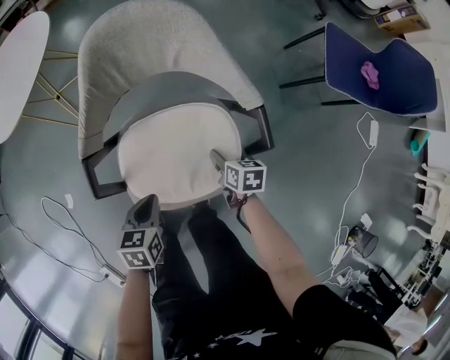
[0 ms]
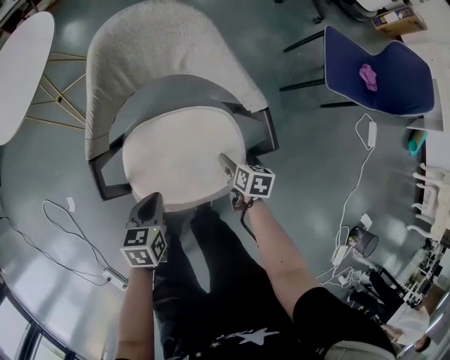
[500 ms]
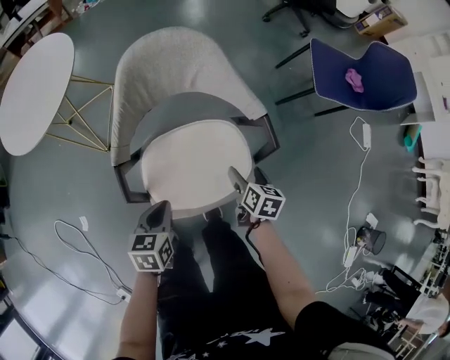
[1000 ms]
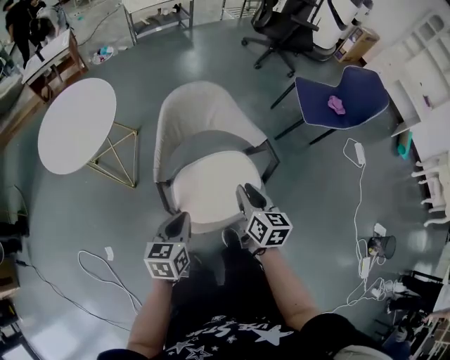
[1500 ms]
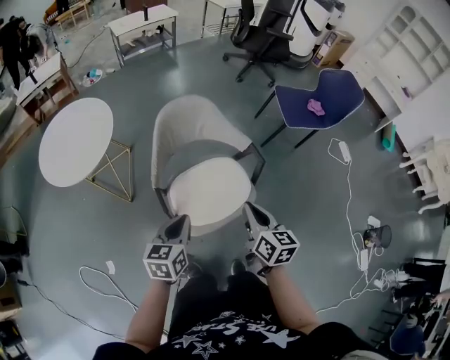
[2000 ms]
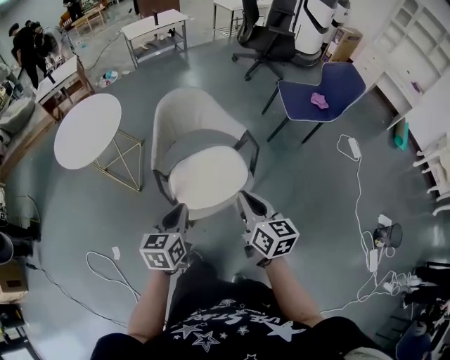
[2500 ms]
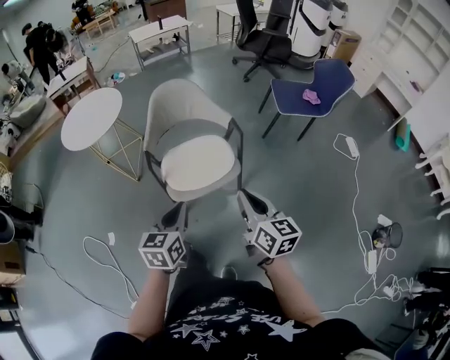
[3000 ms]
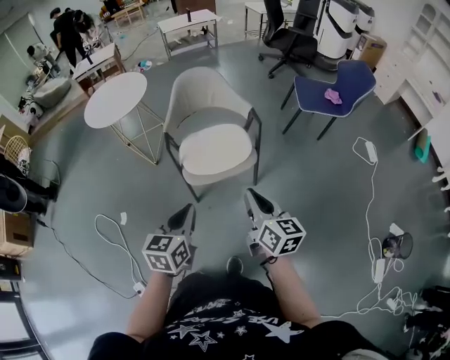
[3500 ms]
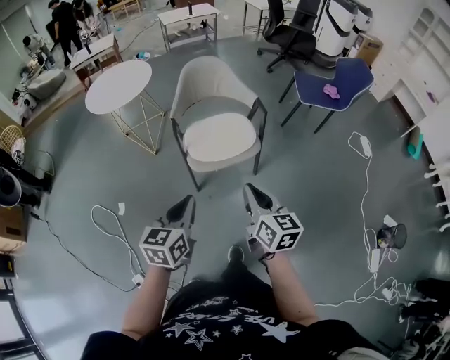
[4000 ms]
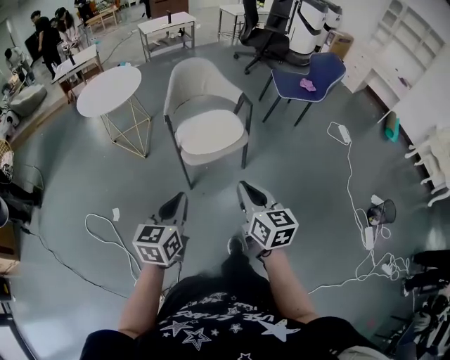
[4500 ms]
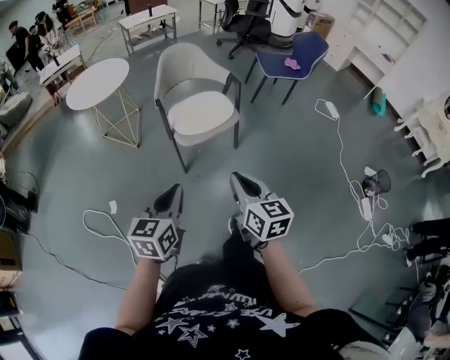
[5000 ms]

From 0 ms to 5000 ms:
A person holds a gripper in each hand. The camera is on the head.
From 0 ms to 2500 ms: The right gripper heads upward and backward, covering roughly 50 cm, tips its fingers upward by approximately 40 degrees, and closes its fingers. Meanwhile the left gripper travels upward by some 30 cm, and changes its angle by some 30 degrees.
From 2500 ms to 5000 ms: Both grippers travel together backward, about 35 cm.

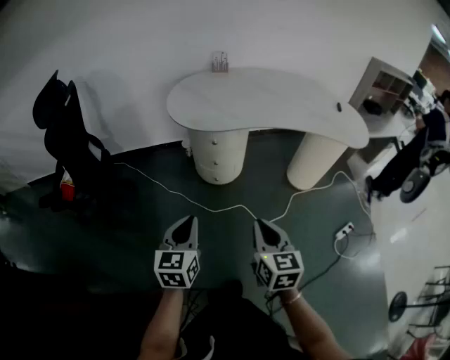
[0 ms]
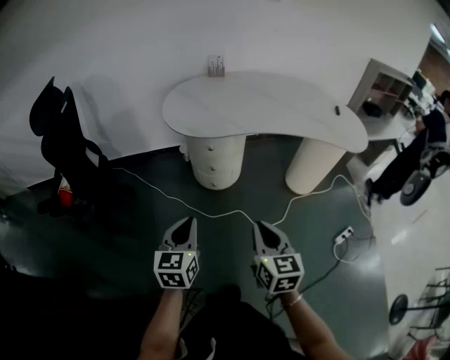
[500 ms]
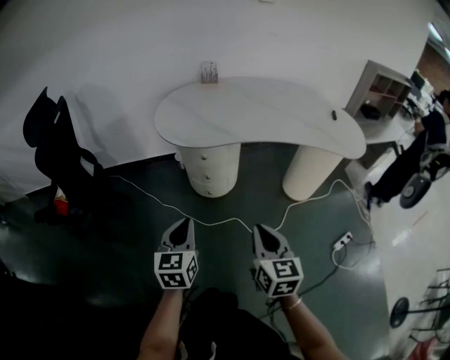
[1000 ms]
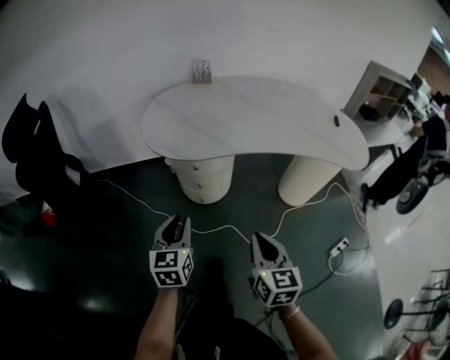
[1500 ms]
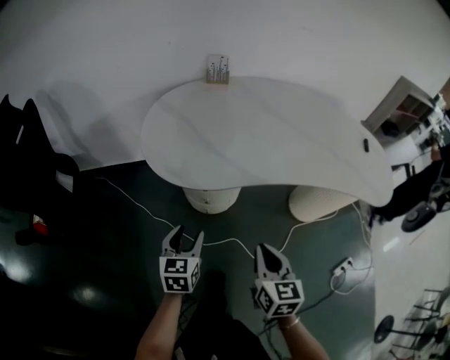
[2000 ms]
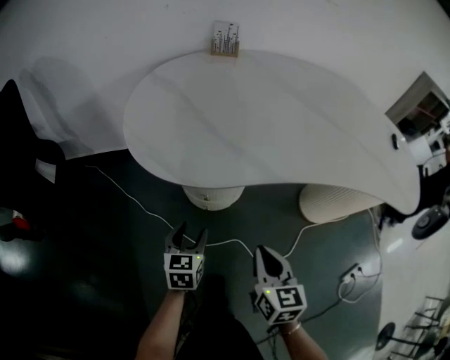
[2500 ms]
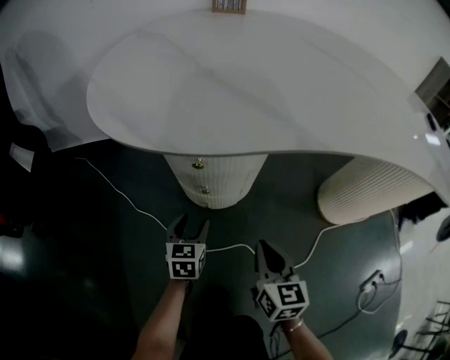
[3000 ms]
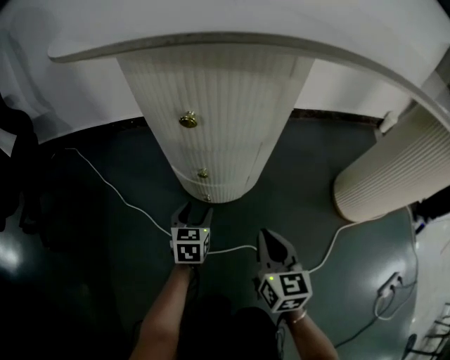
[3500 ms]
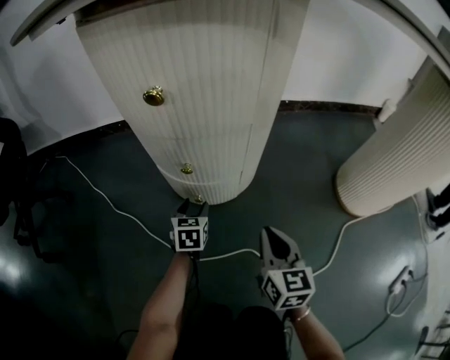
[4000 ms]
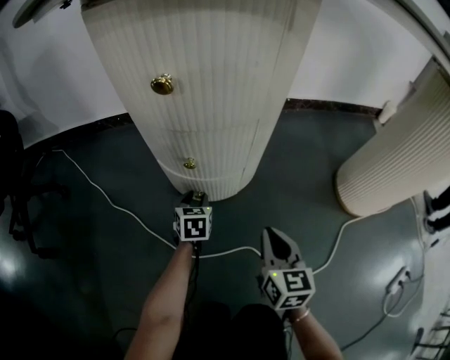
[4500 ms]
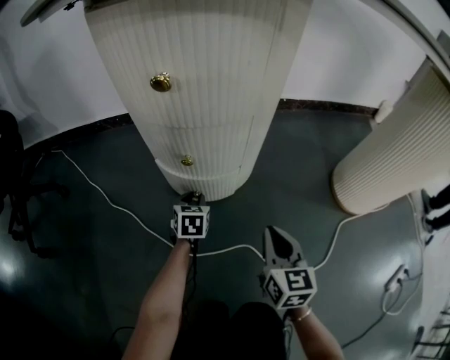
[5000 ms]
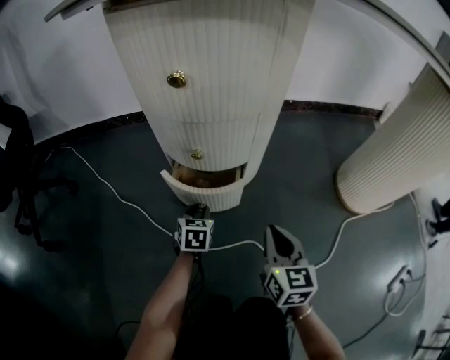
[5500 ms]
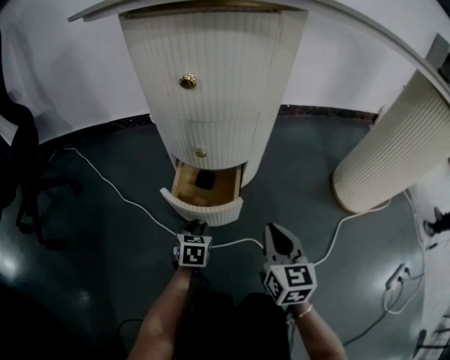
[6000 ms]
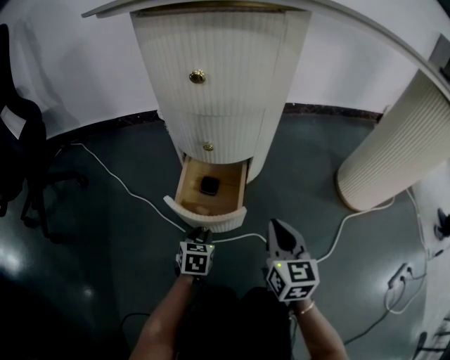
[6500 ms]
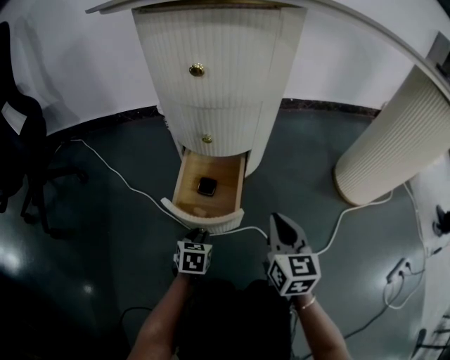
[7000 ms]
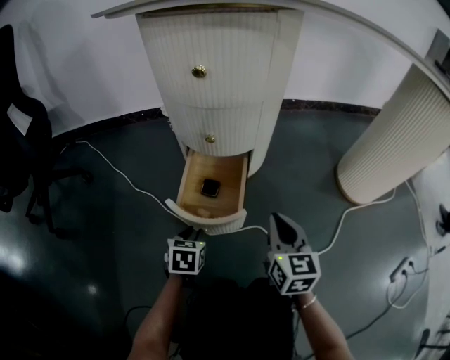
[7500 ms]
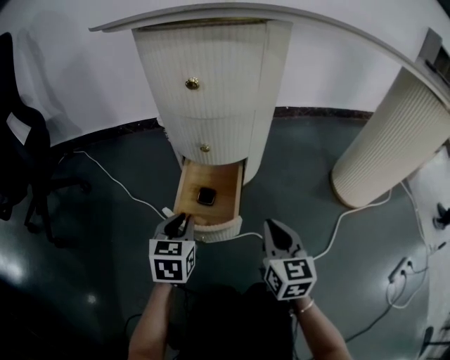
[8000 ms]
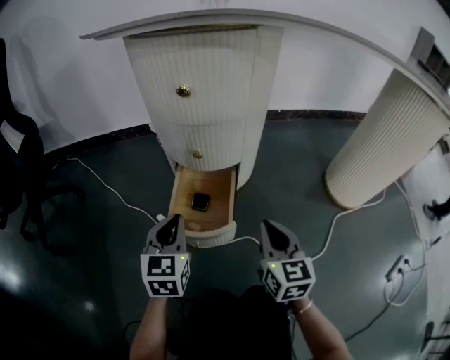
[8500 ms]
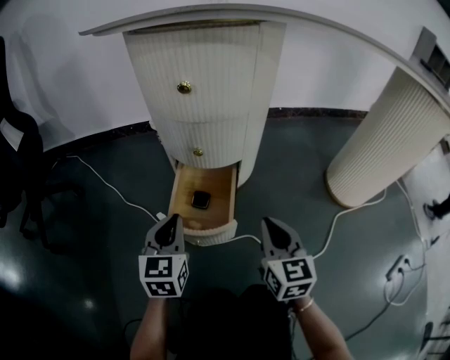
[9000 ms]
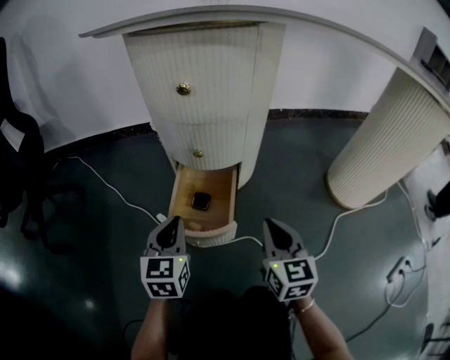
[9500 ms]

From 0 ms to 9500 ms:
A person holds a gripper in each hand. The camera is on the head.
From 0 ms to 2000 ms: The left gripper is displaced forward and downward by roughly 30 cm, and opens. Meanwhile the right gripper moves forward, roughly 25 cm.
From 2000 ms to 4000 ms: The grippers both shift downward by some 50 cm.
From 4000 ms to 5500 ms: The left gripper travels backward by about 5 cm, and closes up.
From 5500 ms to 7500 ms: The right gripper moves approximately 5 cm. Meanwhile the left gripper shifts some 15 cm backward.
From 7500 ms to 9500 ms: The left gripper heads upward, covering some 15 cm, angles its fingers upward, by about 30 degrees, and closes.

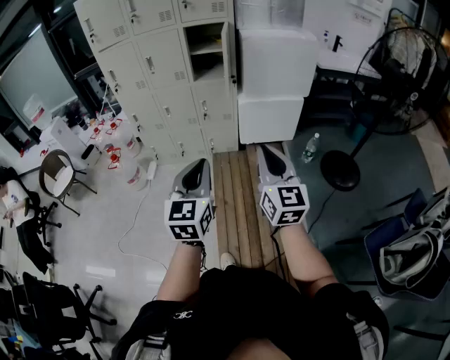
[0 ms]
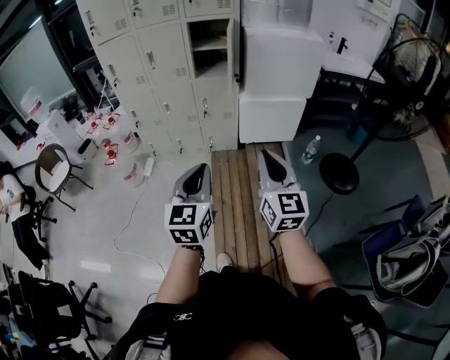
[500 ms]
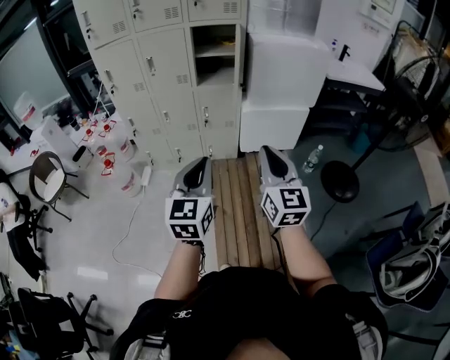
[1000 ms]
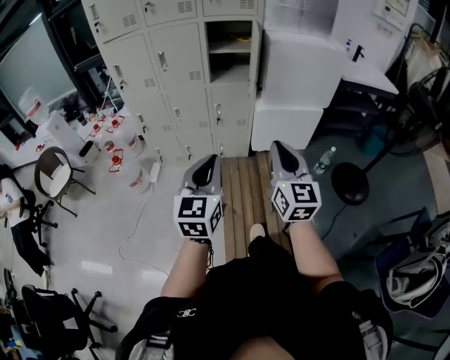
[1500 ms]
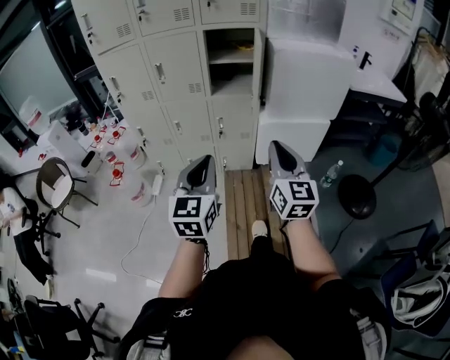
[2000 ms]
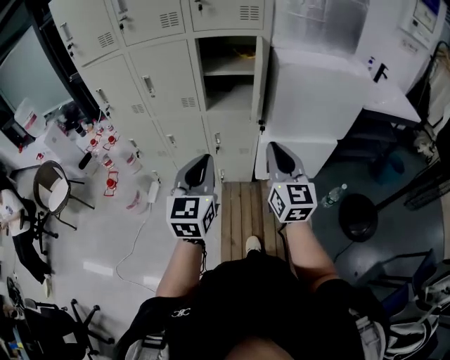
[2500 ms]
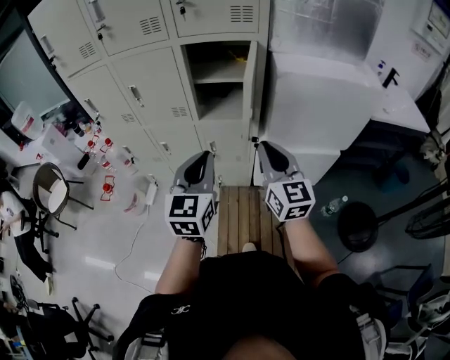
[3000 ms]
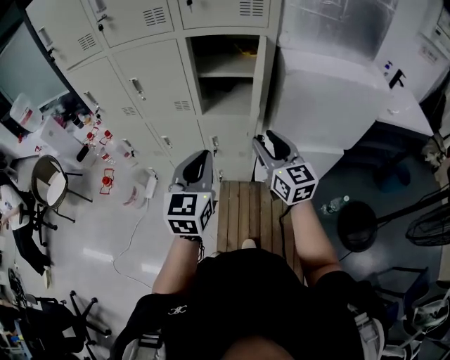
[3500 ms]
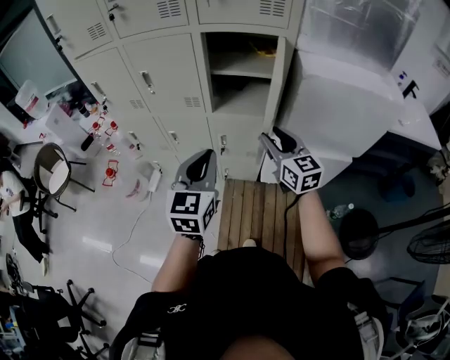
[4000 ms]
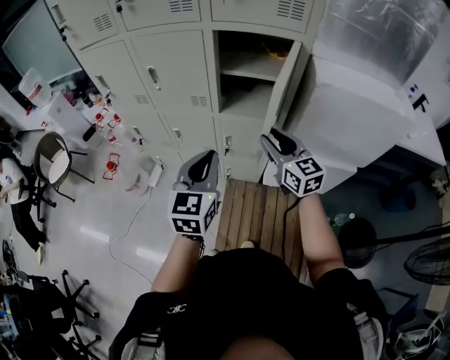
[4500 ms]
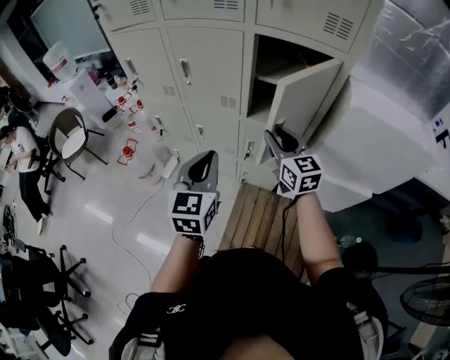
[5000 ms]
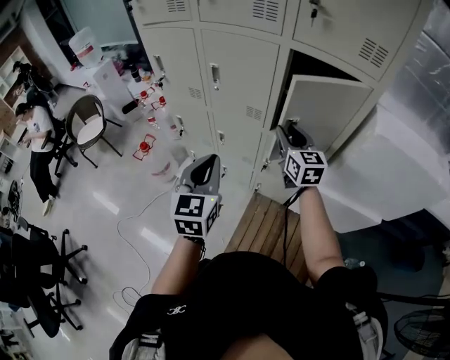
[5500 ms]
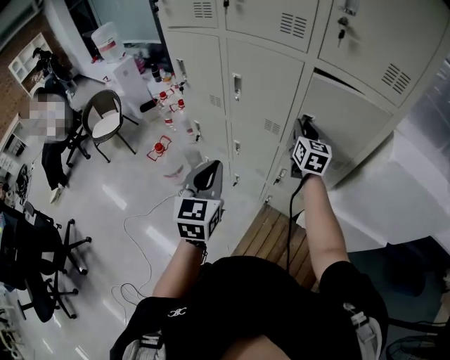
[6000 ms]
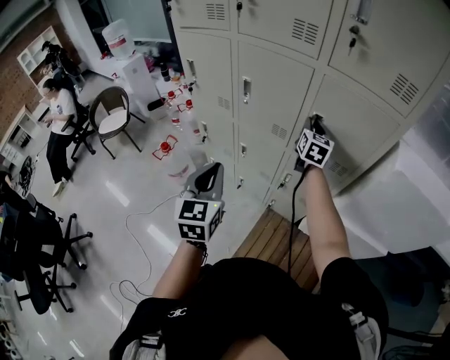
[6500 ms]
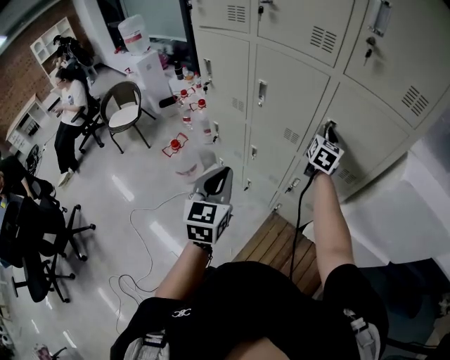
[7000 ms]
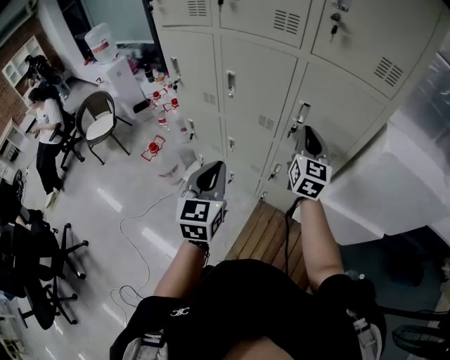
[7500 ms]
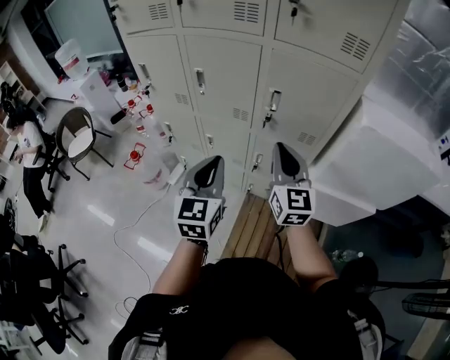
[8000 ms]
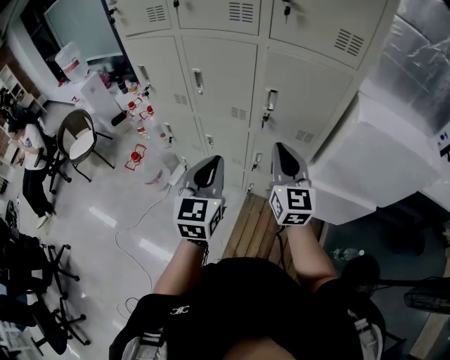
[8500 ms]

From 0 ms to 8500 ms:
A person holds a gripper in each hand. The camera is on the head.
From 0 ms to 2000 ms: The right gripper is displaced forward by about 25 cm; the left gripper moves forward and to the left, about 25 cm.
From 2000 ms to 4000 ms: Both grippers move forward, some 30 cm. The right gripper turns by roughly 30 degrees, and opens.
From 4000 ms to 6500 ms: The right gripper travels forward by roughly 30 cm; the left gripper goes some 20 cm to the left and forward, and swivels roughly 30 degrees.
From 6500 ms to 8500 ms: The left gripper is displaced to the right by roughly 10 cm; the right gripper shifts about 25 cm backward.

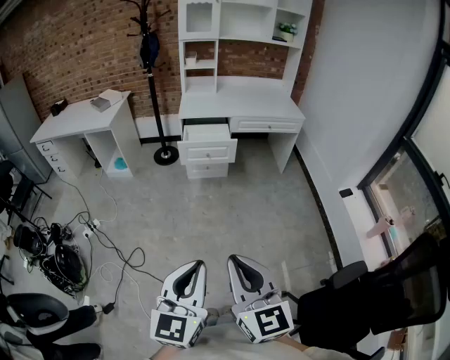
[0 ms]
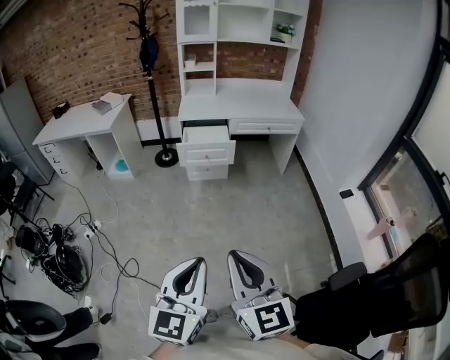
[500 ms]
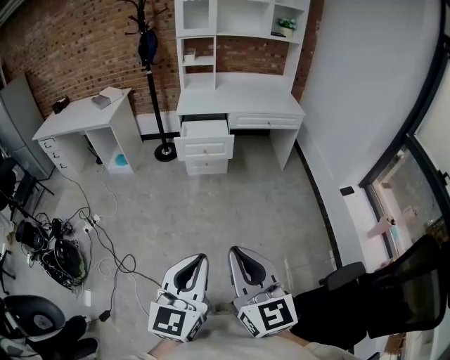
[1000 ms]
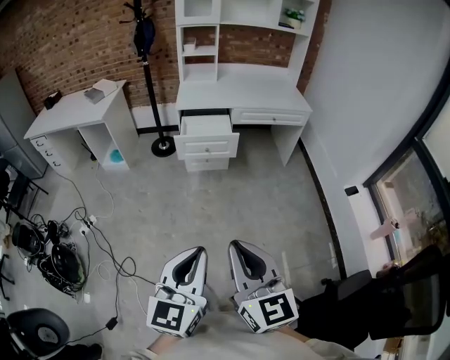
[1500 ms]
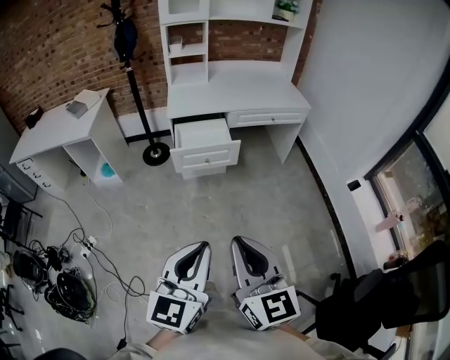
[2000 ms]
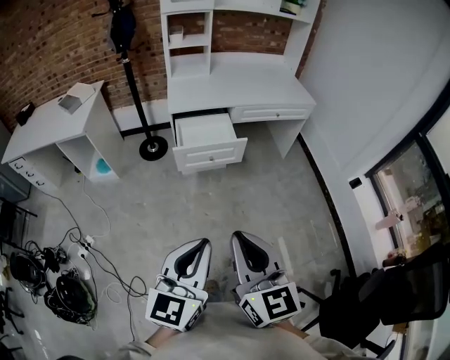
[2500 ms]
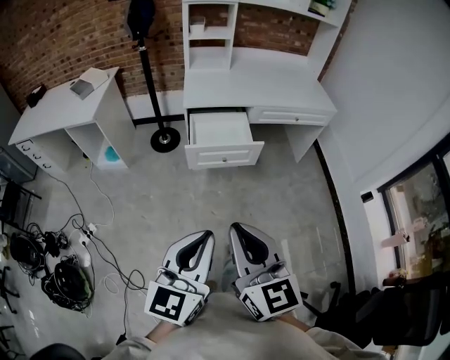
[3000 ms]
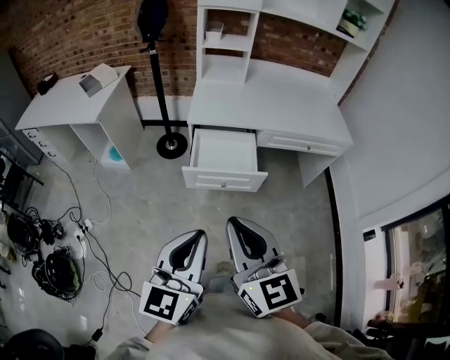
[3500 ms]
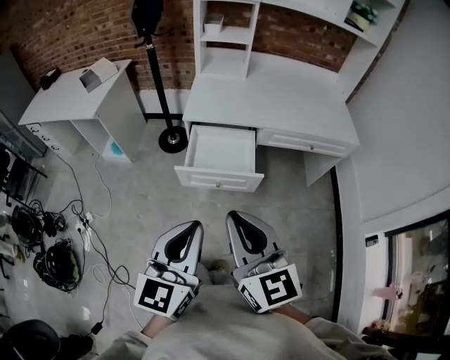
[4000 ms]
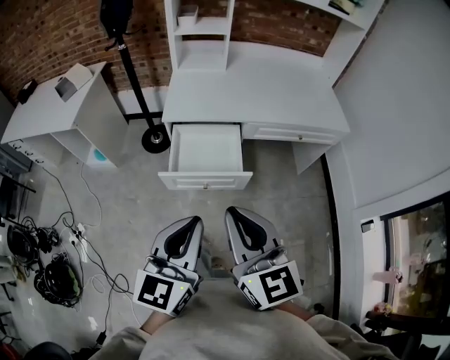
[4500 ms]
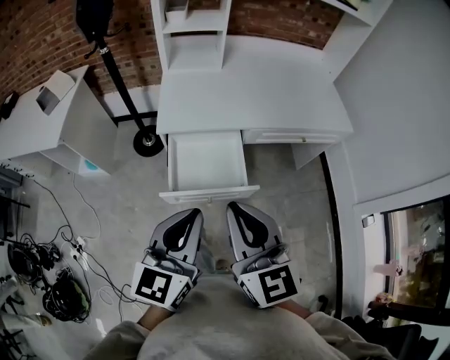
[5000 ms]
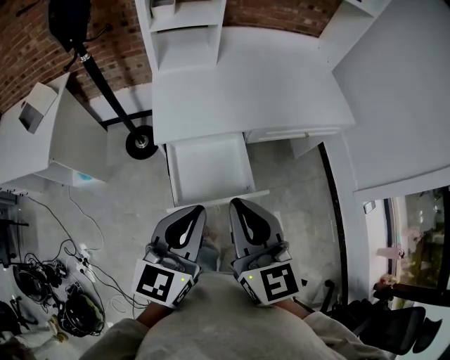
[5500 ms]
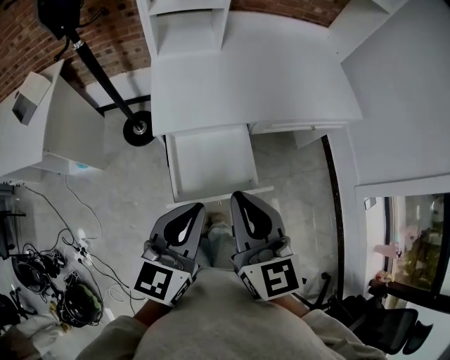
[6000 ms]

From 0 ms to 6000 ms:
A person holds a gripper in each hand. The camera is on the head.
From 0 ms to 2000 ms: The grippers both shift forward by about 25 cm.
From 2000 ms to 4000 ms: The grippers both shift forward by some 35 cm.
From 4000 ms to 6000 ms: Both grippers move forward, about 30 cm. The left gripper swivels some 20 degrees. The right gripper changes its angle by some 20 degrees.
